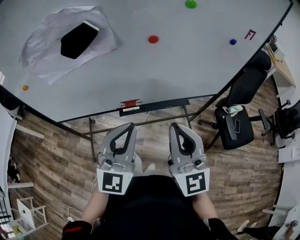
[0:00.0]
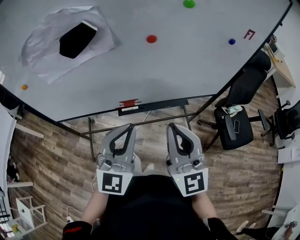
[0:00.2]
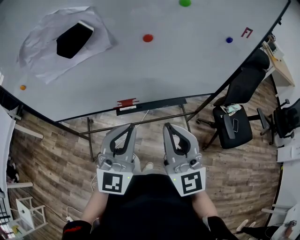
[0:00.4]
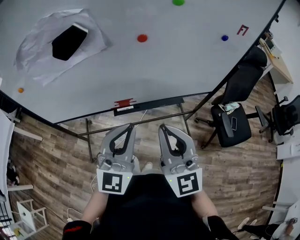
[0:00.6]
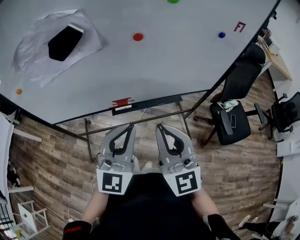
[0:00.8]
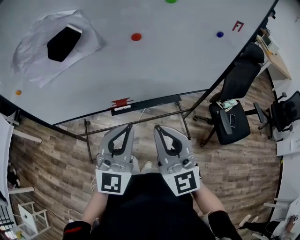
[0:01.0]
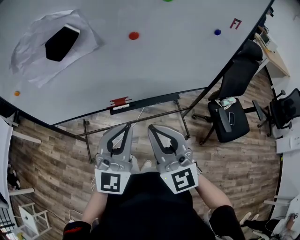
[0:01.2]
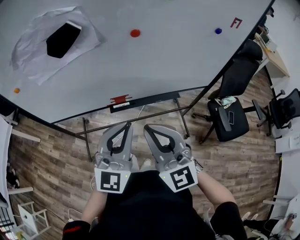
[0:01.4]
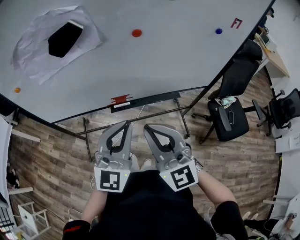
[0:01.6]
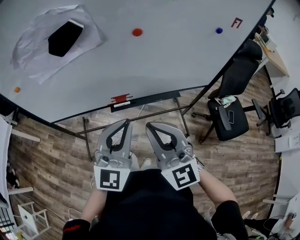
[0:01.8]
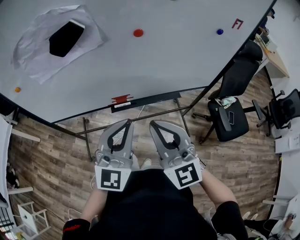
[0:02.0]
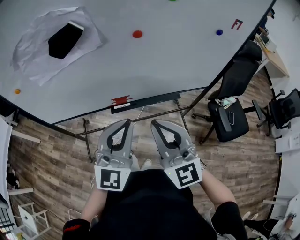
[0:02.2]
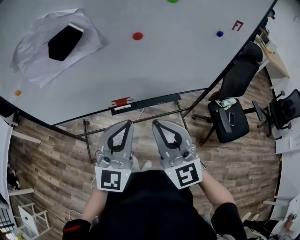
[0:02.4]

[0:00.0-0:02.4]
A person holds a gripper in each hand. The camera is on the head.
0.0 to 2.4 s: The grippers make only small movements.

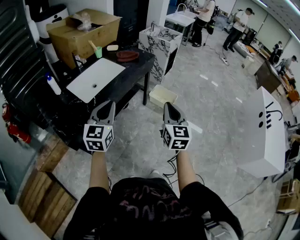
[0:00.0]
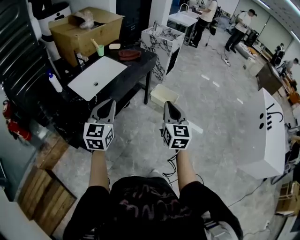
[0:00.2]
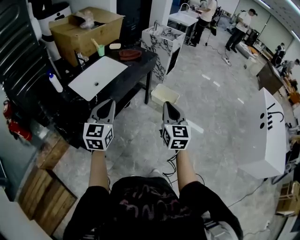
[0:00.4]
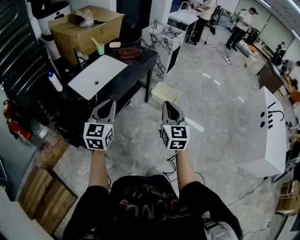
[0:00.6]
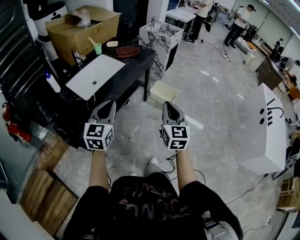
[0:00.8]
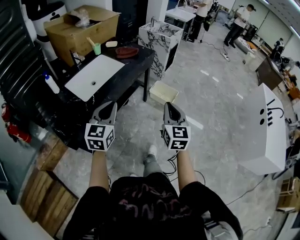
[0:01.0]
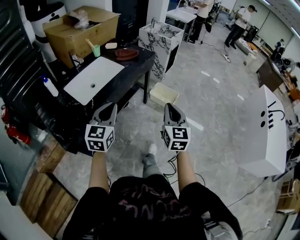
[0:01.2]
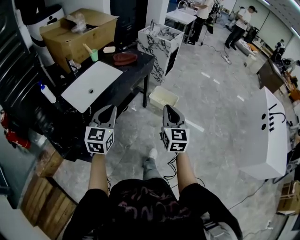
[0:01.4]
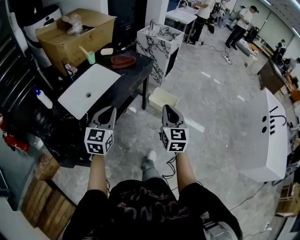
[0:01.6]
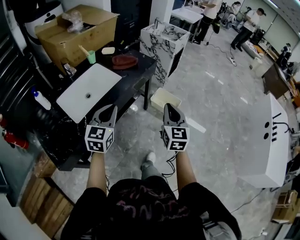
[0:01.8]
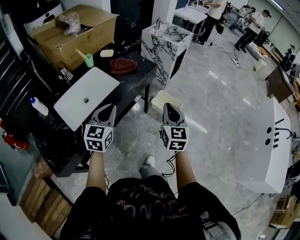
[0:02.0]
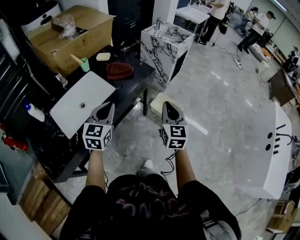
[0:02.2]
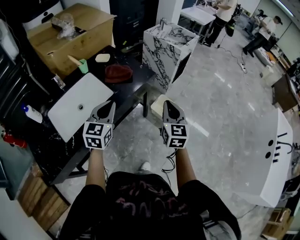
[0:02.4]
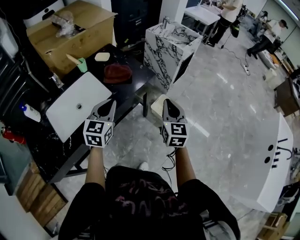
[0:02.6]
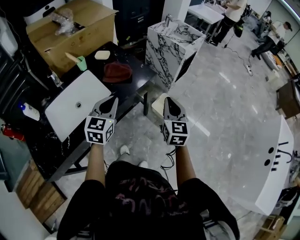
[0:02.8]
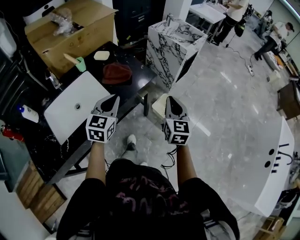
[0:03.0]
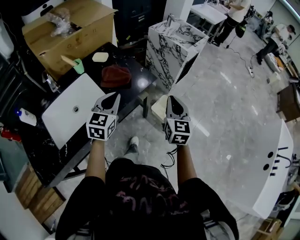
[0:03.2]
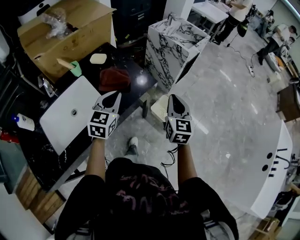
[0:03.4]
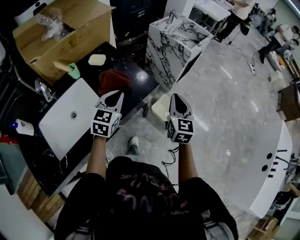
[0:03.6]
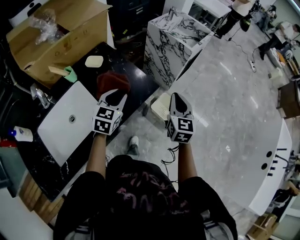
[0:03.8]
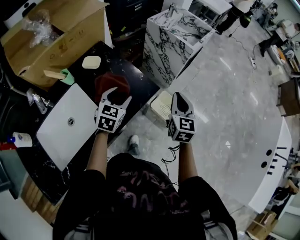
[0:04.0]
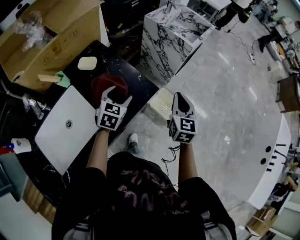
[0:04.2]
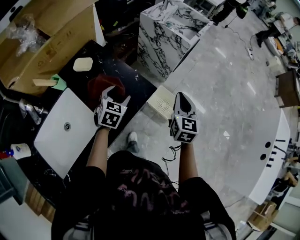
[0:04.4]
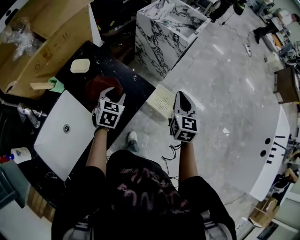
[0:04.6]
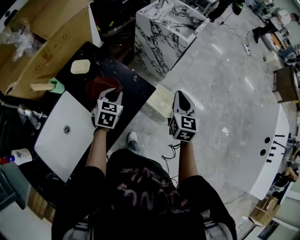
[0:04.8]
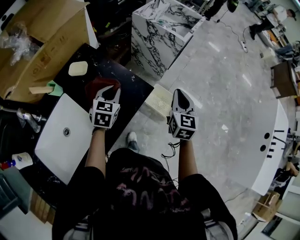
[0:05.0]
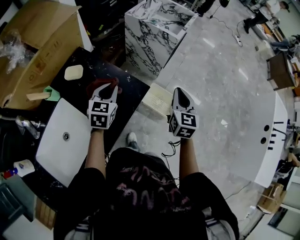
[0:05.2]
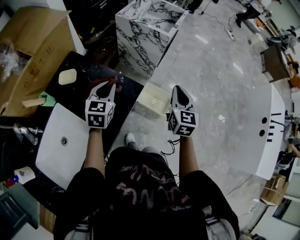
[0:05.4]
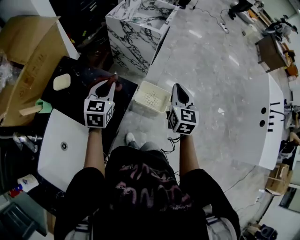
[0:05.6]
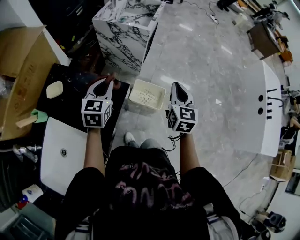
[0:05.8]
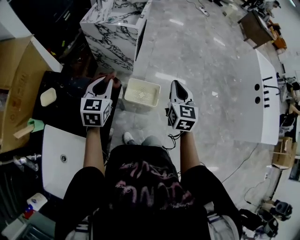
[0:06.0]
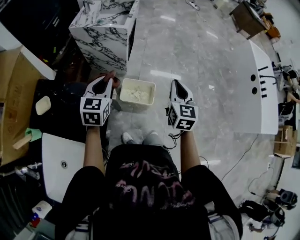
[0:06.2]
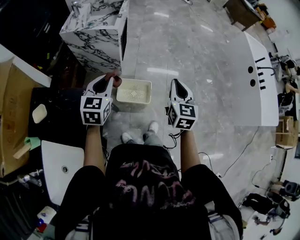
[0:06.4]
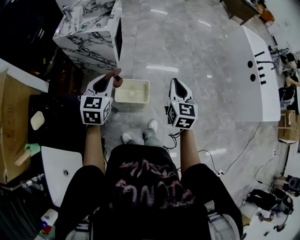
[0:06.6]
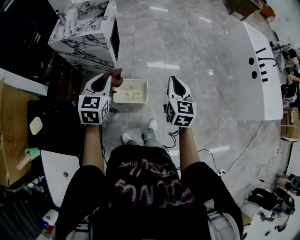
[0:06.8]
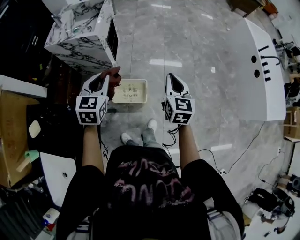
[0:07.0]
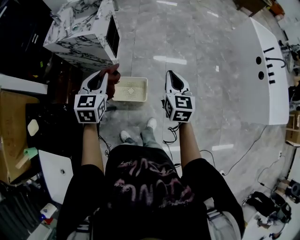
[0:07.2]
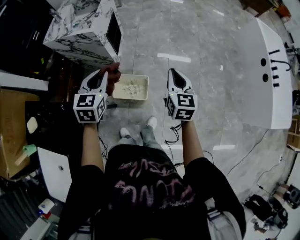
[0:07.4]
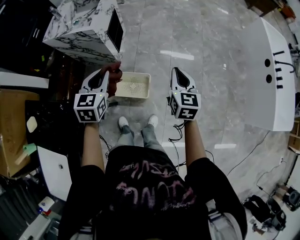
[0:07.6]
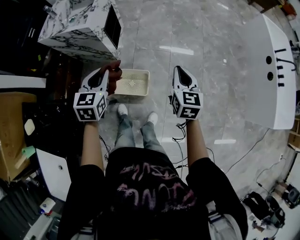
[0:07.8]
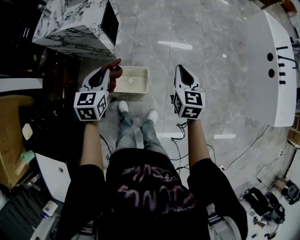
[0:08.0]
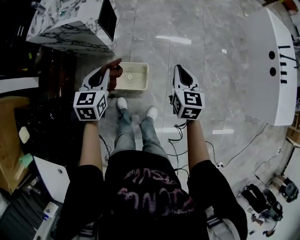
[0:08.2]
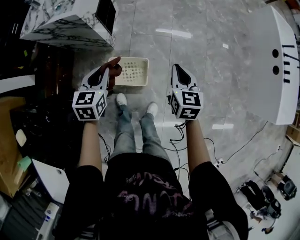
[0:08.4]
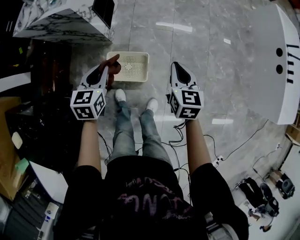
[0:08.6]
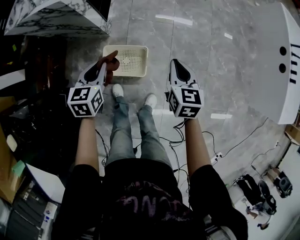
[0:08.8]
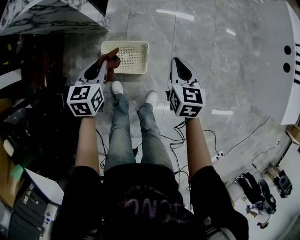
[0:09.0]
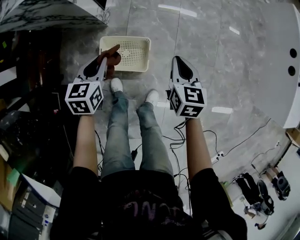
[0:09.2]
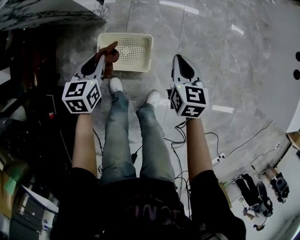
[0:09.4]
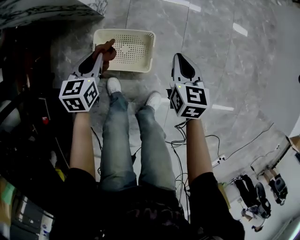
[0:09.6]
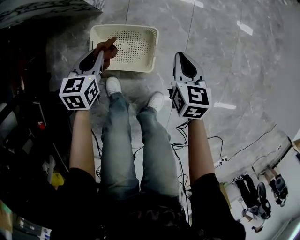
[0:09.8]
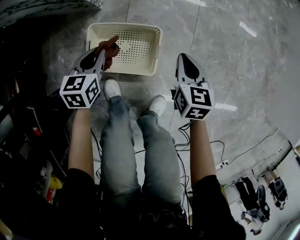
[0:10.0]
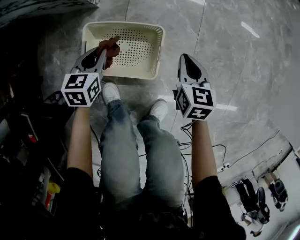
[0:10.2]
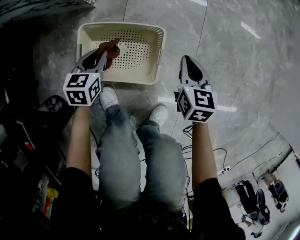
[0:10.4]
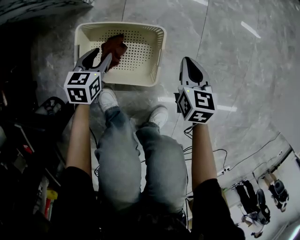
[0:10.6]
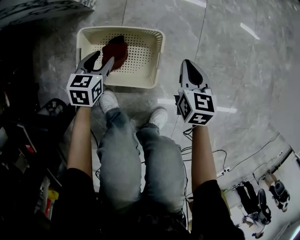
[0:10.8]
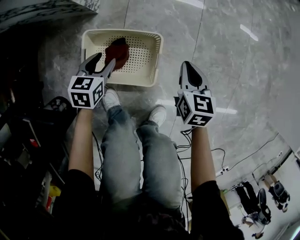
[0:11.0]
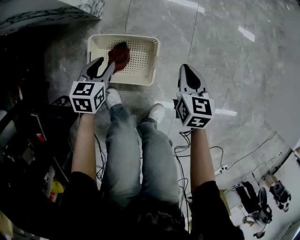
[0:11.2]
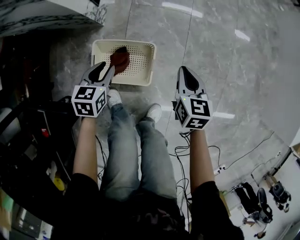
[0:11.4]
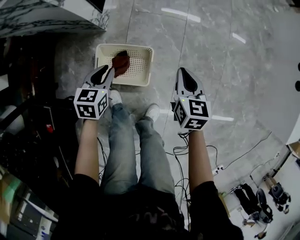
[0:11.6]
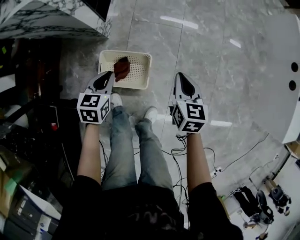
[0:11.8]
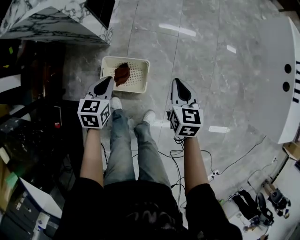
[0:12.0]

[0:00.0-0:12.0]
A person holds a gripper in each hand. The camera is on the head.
0.0 to 1.6 s: The grippers both shift forward by roughly 15 cm.
1.6 to 3.0 s: The two grippers go approximately 35 cm forward.
3.0 to 4.4 s: The left gripper goes about 30 cm forward and downward, rotates roughly 30 degrees, and opens up, while the right gripper shifts approximately 20 cm forward.
4.4 to 6.0 s: The left gripper shifts about 15 cm to the right, upward and forward, rotates some 20 degrees, and closes. Meanwhile the right gripper goes approximately 15 cm to the right, and changes its angle by some 20 degrees.
6.0 to 7.6 s: Both grippers travel together to the right and forward, roughly 30 cm.
7.6 to 9.0 s: The grippers both shift downward by some 30 cm.
9.0 to 10.4 s: Both grippers travel together downward, some 50 cm.
10.4 to 12.0 s: The grippers both shift upward by about 40 cm. The left gripper opens, then closes again.

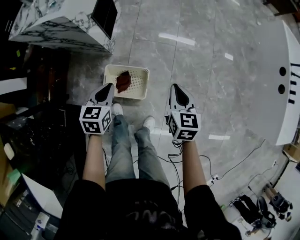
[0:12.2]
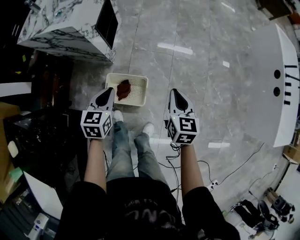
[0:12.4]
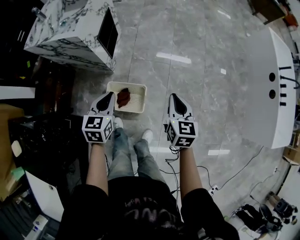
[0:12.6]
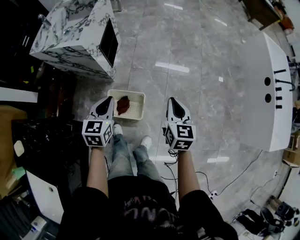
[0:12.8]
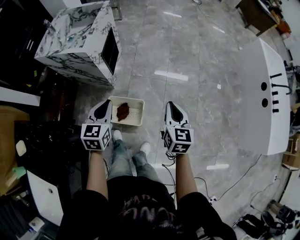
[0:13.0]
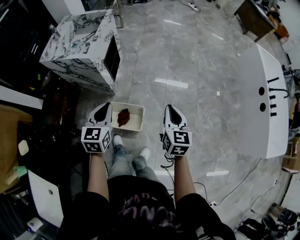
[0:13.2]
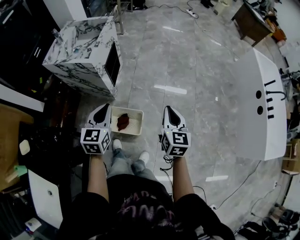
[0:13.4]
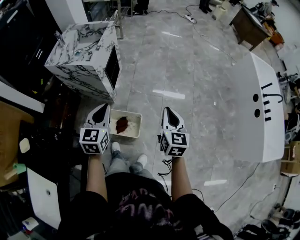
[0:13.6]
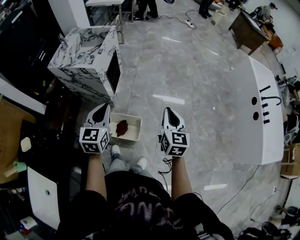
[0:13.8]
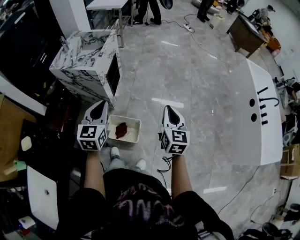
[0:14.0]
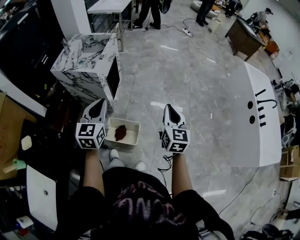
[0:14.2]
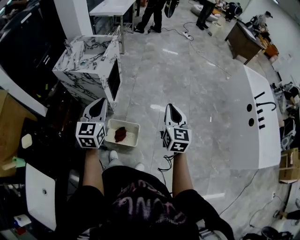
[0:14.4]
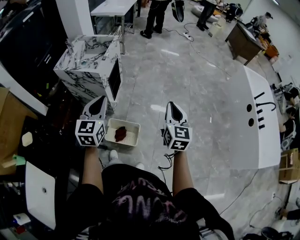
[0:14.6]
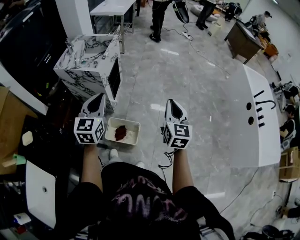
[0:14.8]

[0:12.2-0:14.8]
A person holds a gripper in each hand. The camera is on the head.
12.2 to 13.4 s: Both grippers move upward, about 25 cm. The left gripper rotates about 20 degrees.
13.4 to 14.8 s: Both grippers move upward, approximately 10 cm.

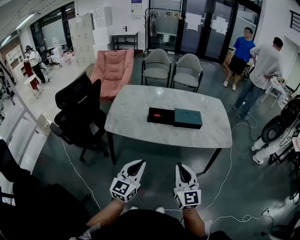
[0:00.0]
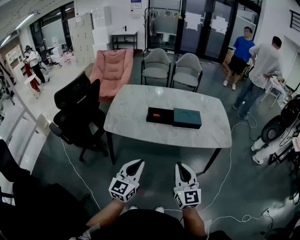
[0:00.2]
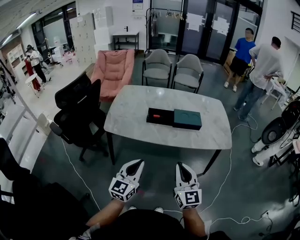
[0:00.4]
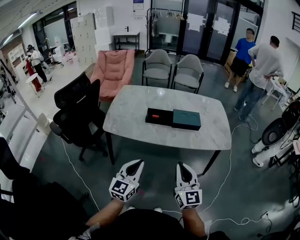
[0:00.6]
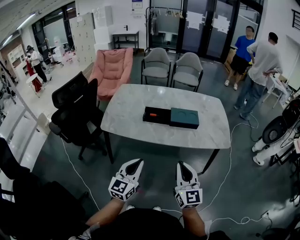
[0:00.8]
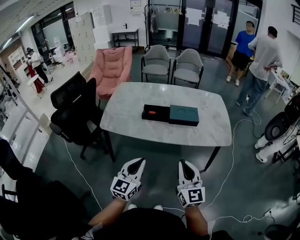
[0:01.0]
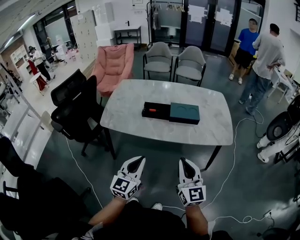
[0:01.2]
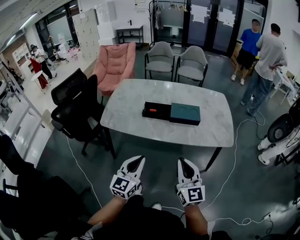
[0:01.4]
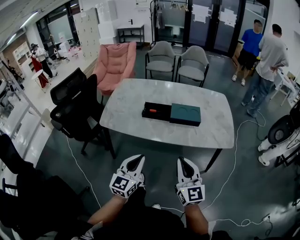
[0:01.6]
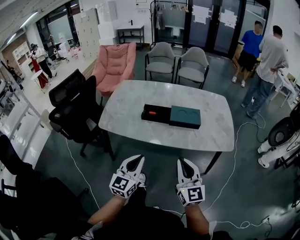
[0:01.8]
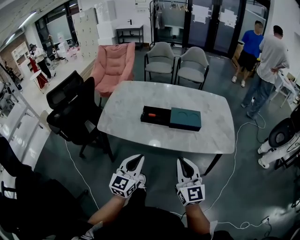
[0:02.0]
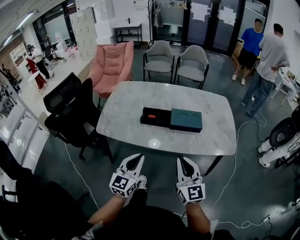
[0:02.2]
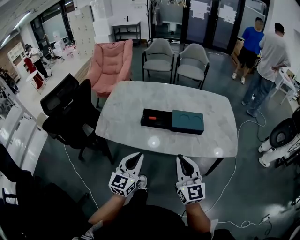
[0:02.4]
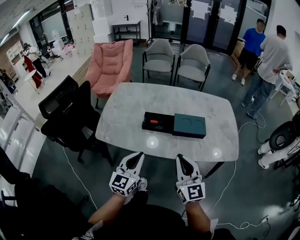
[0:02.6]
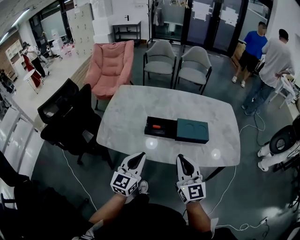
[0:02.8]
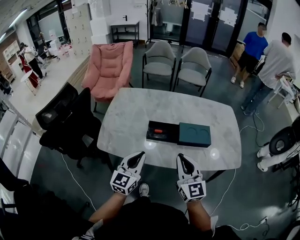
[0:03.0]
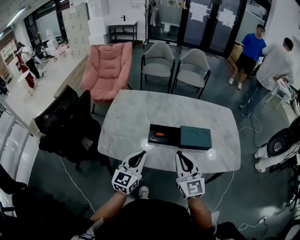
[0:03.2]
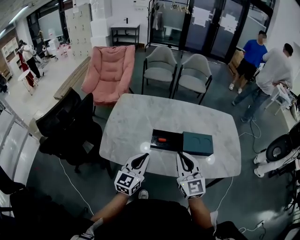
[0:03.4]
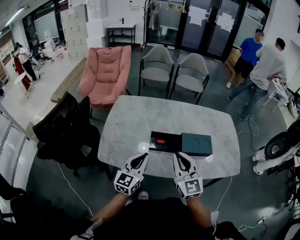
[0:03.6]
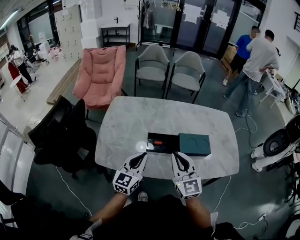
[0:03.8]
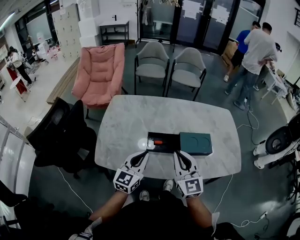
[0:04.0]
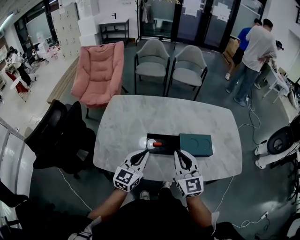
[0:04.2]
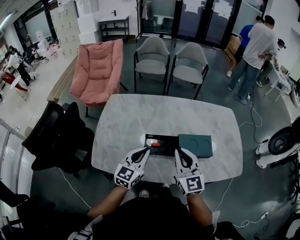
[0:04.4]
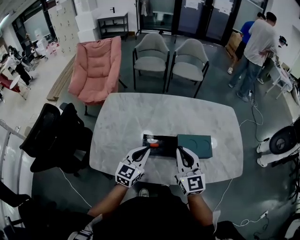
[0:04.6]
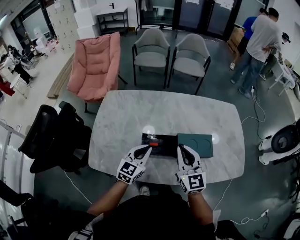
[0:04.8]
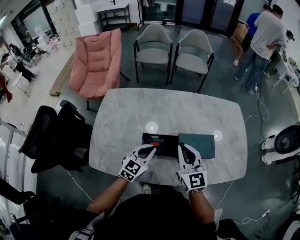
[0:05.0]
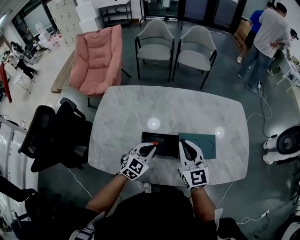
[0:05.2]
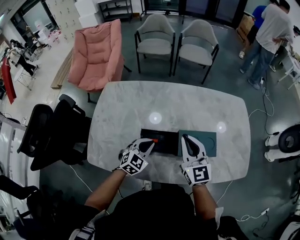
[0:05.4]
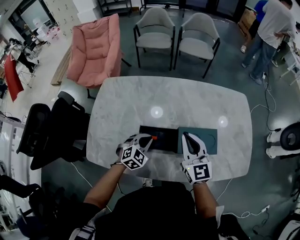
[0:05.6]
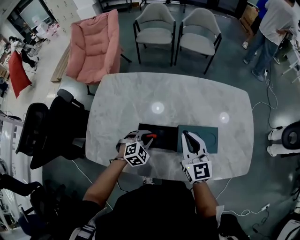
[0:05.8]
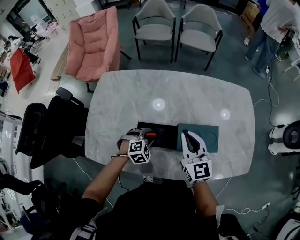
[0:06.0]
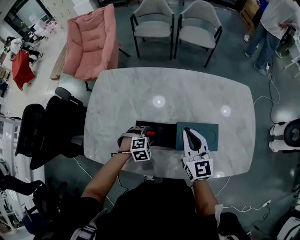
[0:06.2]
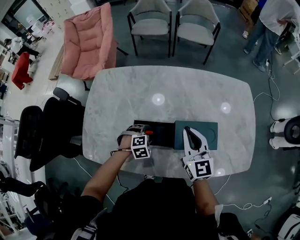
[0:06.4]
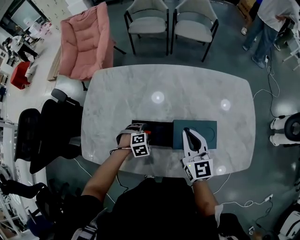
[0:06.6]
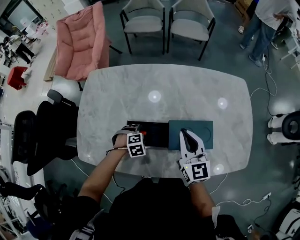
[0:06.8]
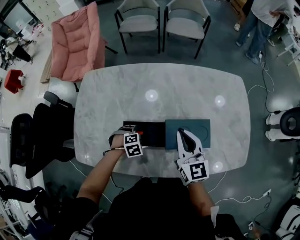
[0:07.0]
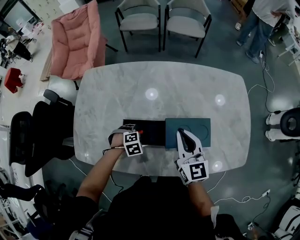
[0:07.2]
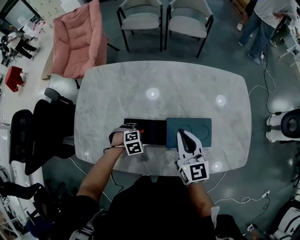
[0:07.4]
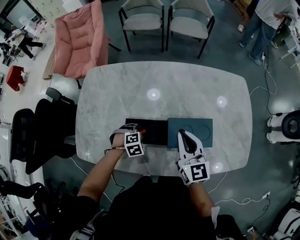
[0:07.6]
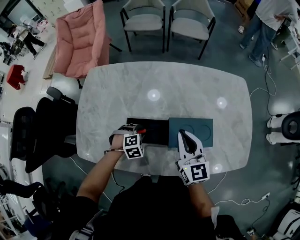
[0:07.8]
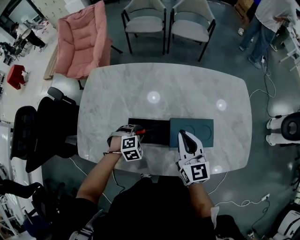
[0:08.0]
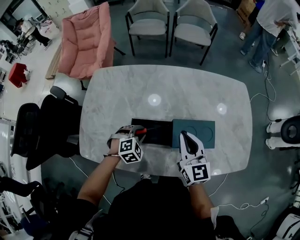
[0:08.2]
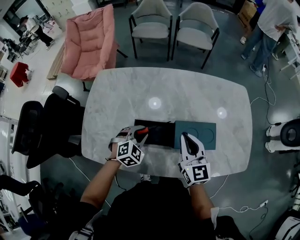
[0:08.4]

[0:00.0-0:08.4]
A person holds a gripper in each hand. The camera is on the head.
0.0 to 1.4 s: Both grippers move to the right, roughly 10 cm.
1.4 to 2.8 s: Both grippers travel together forward, some 20 cm.
2.8 to 4.2 s: The left gripper heads forward, covering approximately 15 cm. Meanwhile the right gripper heads forward and to the left, covering some 15 cm.
4.2 to 5.6 s: The right gripper is displaced forward and to the right by some 15 cm, while the left gripper goes some 20 cm downward and forward, and angles its fingers downward, by some 40 degrees.
5.6 to 7.0 s: The right gripper ends up approximately 5 cm from where it was. The left gripper shifts about 10 cm downward, tips its fingers downward by roughly 40 degrees, and opens its fingers.
7.0 to 8.4 s: The left gripper heads upward, covering some 15 cm, points its fingers approximately 30 degrees further upward, and closes.
